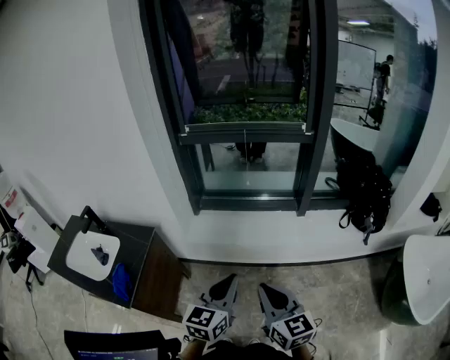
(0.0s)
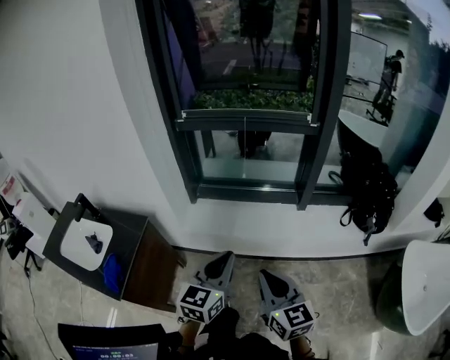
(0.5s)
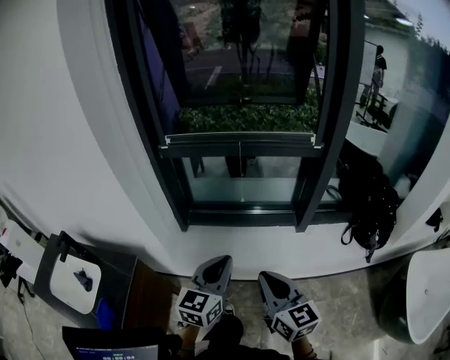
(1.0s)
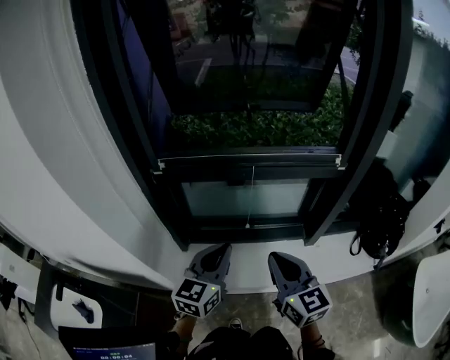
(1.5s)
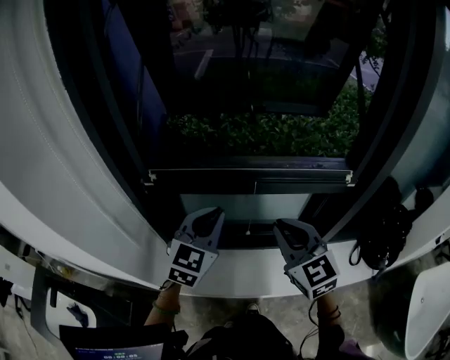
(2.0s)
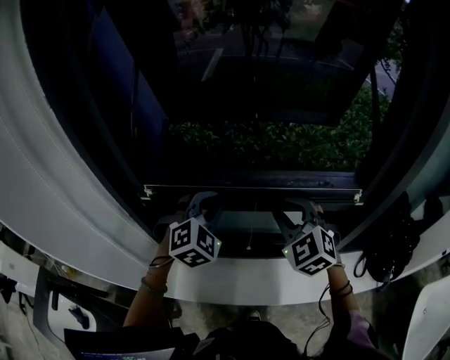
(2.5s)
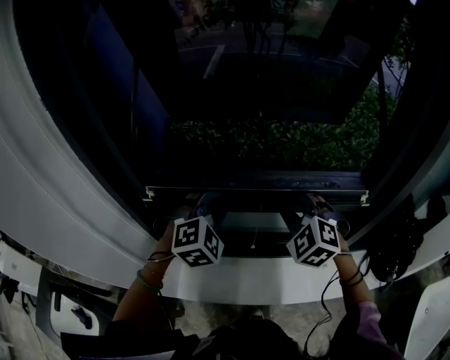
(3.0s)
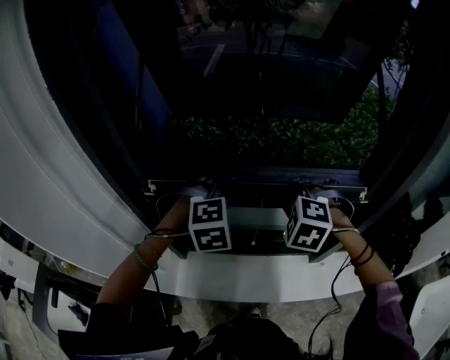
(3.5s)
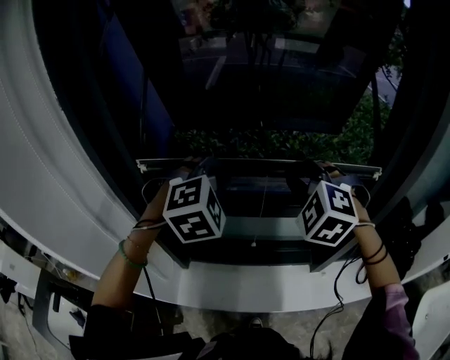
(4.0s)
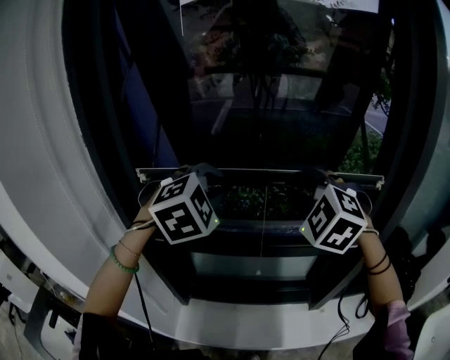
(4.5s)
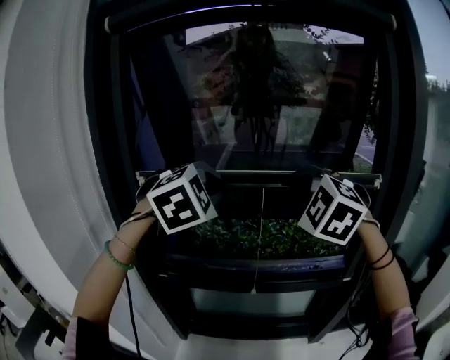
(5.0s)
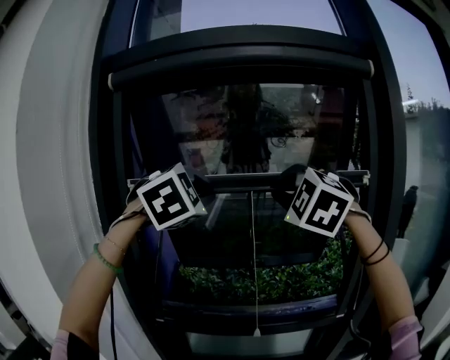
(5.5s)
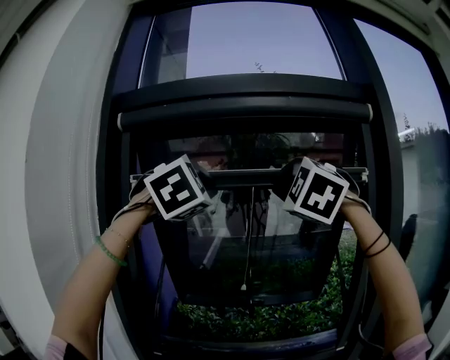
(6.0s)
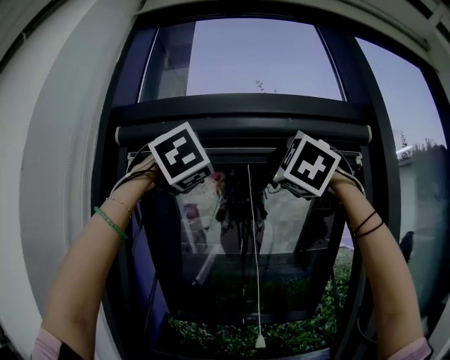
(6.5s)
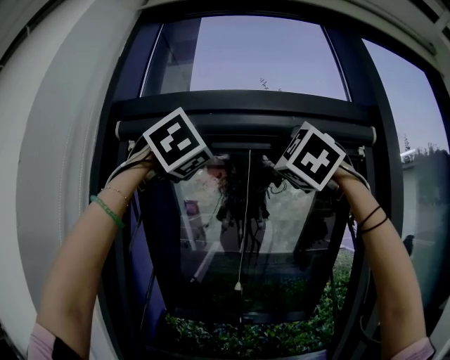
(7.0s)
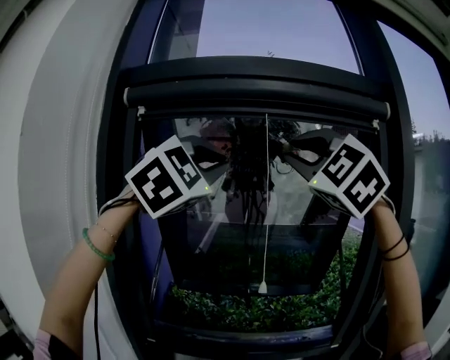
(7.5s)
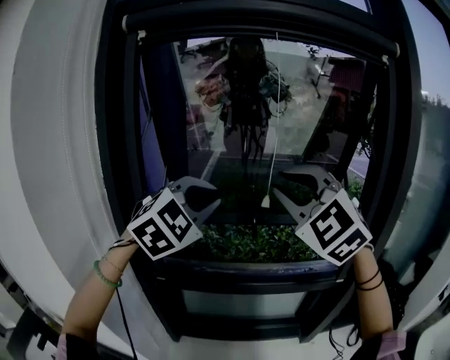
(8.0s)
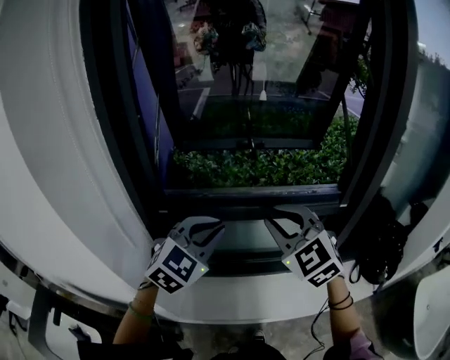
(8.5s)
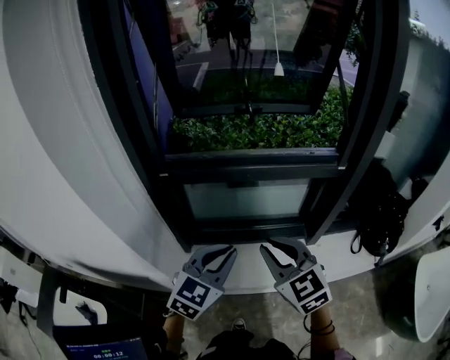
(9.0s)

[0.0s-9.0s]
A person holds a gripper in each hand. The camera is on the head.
0.0s to 2.0s: Both grippers are carried forward, approximately 60 cm. The left gripper swivels approximately 30 degrees, while the right gripper rotates roughly 30 degrees.
2.0s to 4.5s: The grippers both shift upward and forward by some 25 cm. The left gripper twists approximately 40 degrees clockwise, seen from behind, while the right gripper rotates around the line of its fingers by roughly 50 degrees, counterclockwise from behind.
4.5s to 7.0s: The grippers both shift upward by roughly 50 cm. The left gripper tips its fingers upward by about 30 degrees. The right gripper tips its fingers upward by approximately 30 degrees.
7.0s to 9.0s: Both grippers travel together downward and backward, about 80 cm. The right gripper twists about 50 degrees clockwise, seen from behind; the left gripper rotates around the line of its fingers by approximately 50 degrees, counterclockwise from behind.

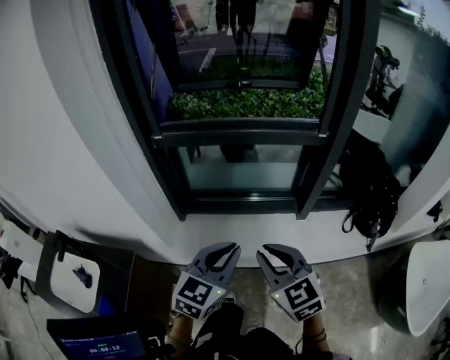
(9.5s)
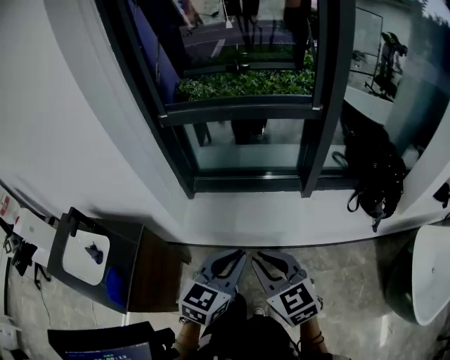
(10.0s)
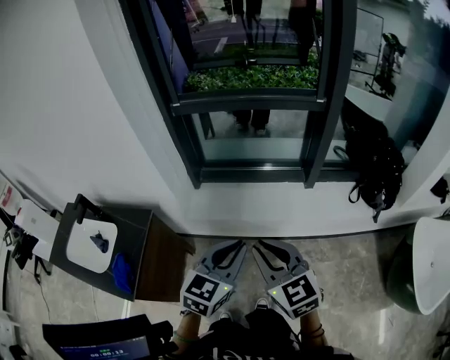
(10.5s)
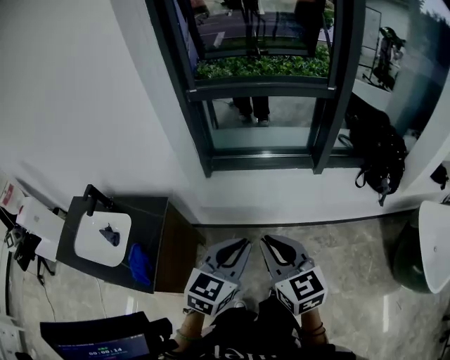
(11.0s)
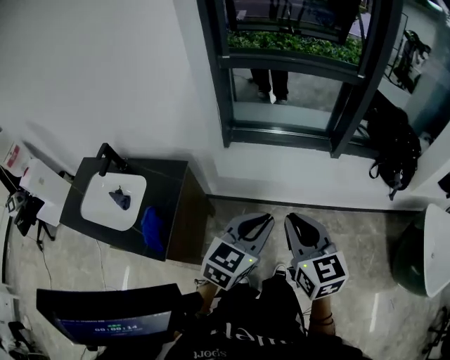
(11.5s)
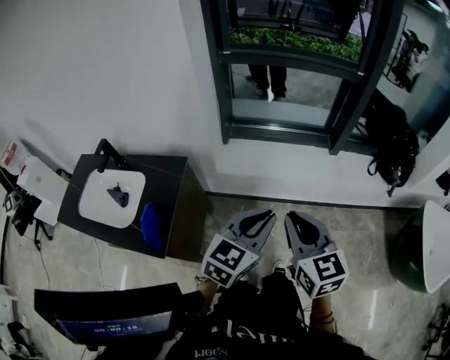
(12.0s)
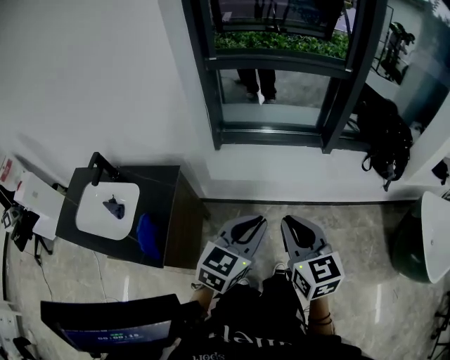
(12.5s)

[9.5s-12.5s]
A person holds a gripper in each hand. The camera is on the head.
9.5s to 11.0s: The left gripper shifts roughly 25 cm backward. Meanwhile the right gripper is displaced backward and to the left by about 25 cm.
11.0s to 12.5s: The left gripper moves roughly 5 cm.

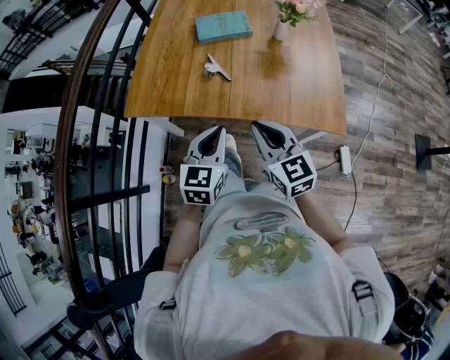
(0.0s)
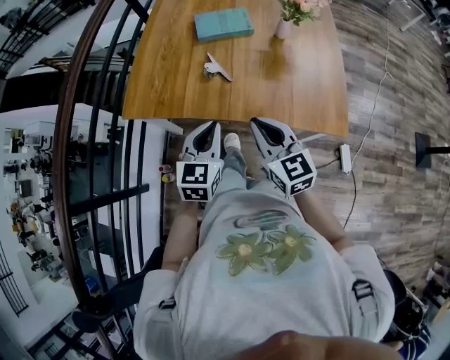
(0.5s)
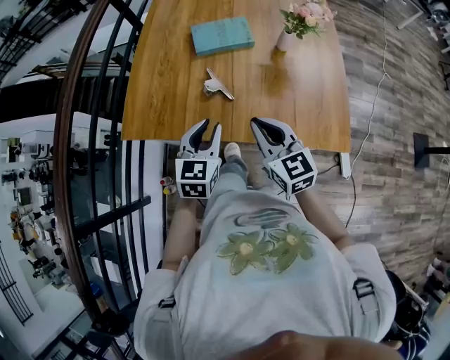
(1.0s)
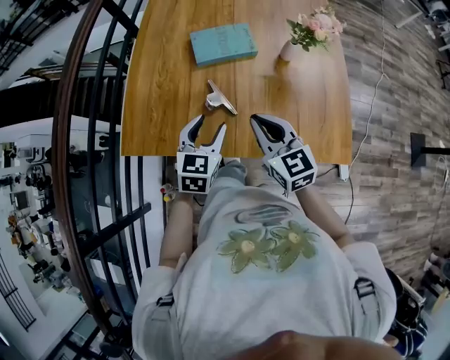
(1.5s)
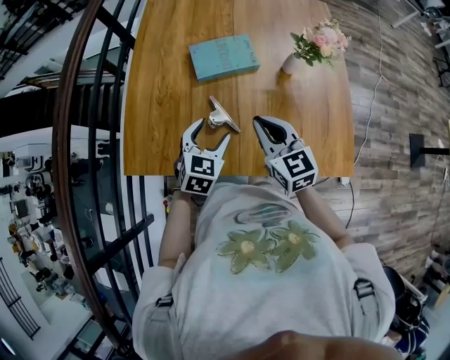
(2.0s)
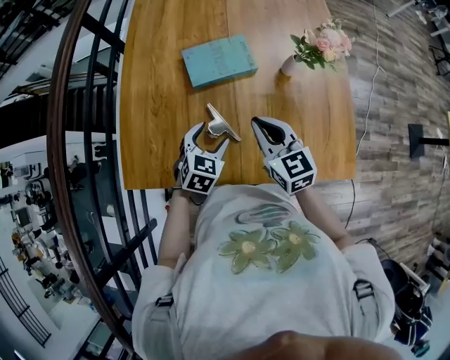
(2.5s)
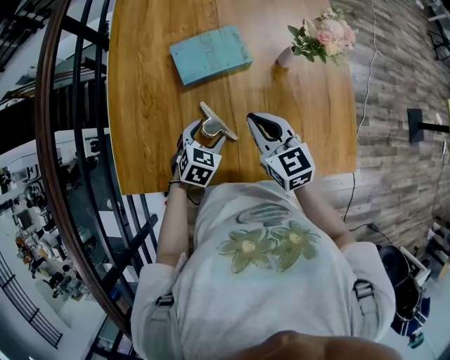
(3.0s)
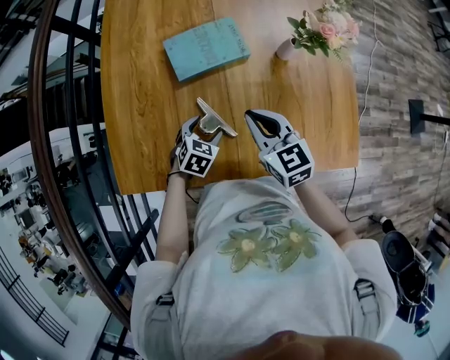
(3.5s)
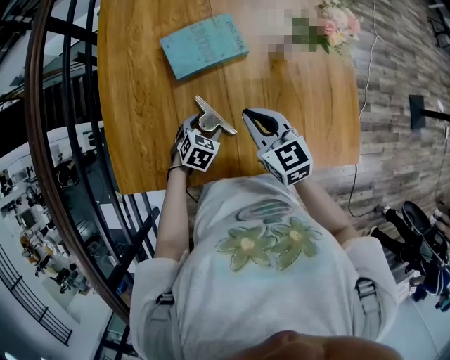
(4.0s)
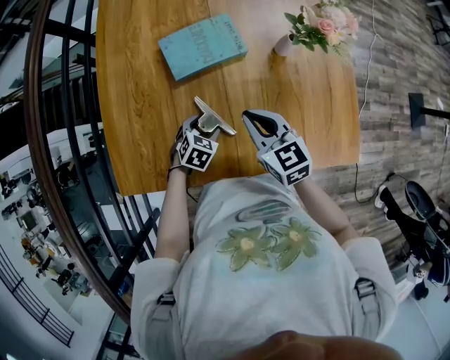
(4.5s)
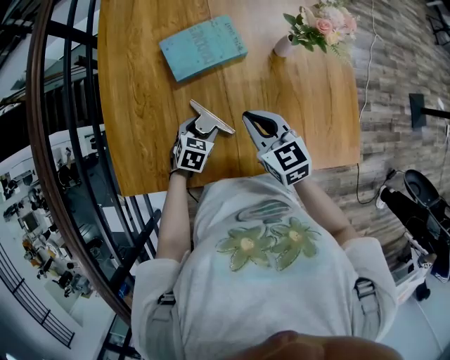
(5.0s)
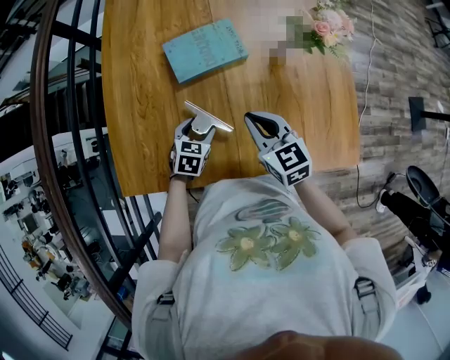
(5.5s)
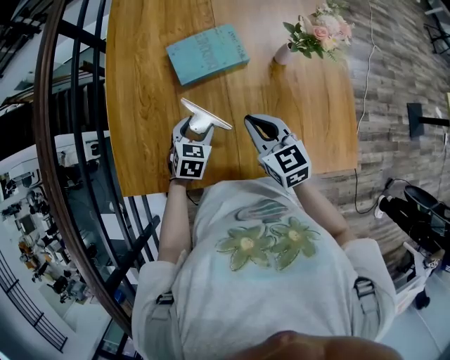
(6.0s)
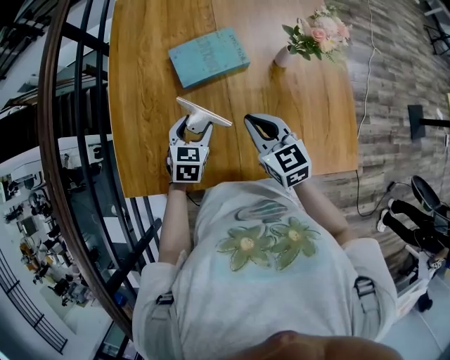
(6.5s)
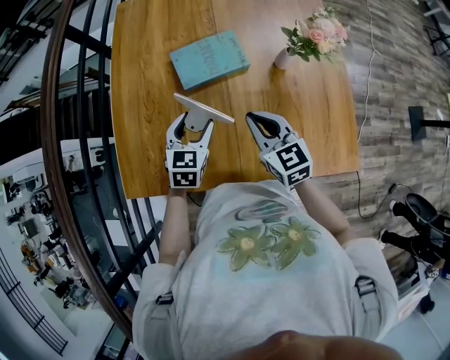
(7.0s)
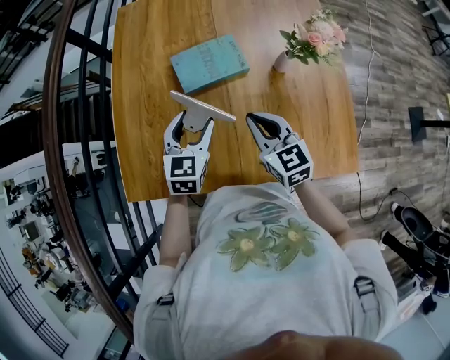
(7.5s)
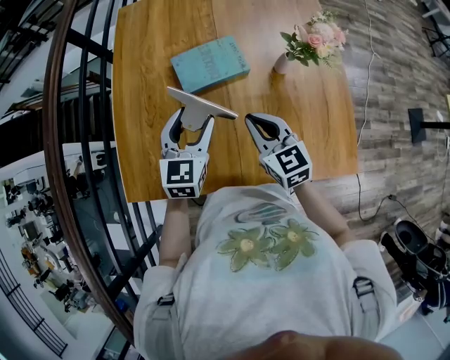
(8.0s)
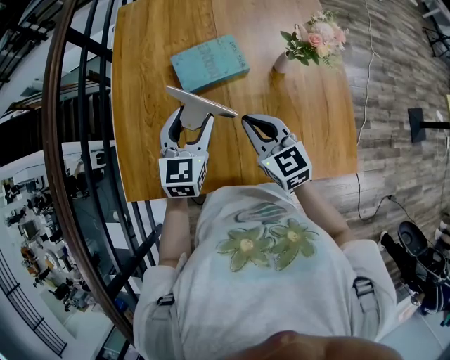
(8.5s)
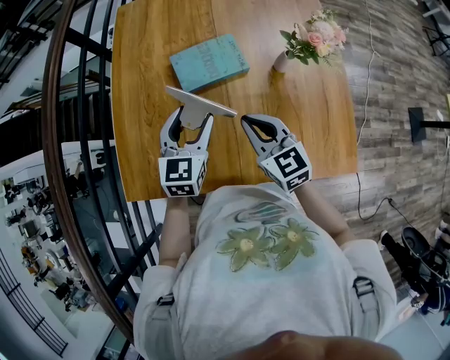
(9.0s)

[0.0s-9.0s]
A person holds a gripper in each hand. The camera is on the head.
0.0s to 2.0s: Both grippers move forward, roughly 25 cm. The left gripper swivels roughly 20 degrees, and opens its fingers.
2.0s to 4.5s: The left gripper is displaced downward by roughly 20 cm, and rotates some 30 degrees. Meanwhile the right gripper moves downward, approximately 5 cm.
4.5s to 7.0s: The left gripper is displaced upward by roughly 15 cm, and rotates approximately 30 degrees.
7.0s to 9.0s: The left gripper goes approximately 10 cm upward.

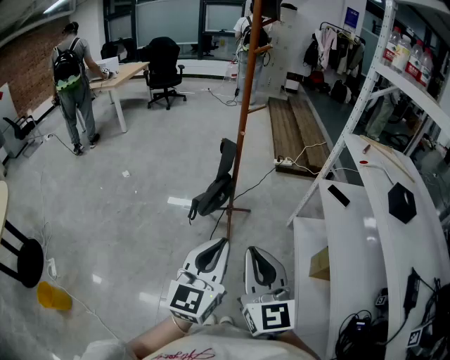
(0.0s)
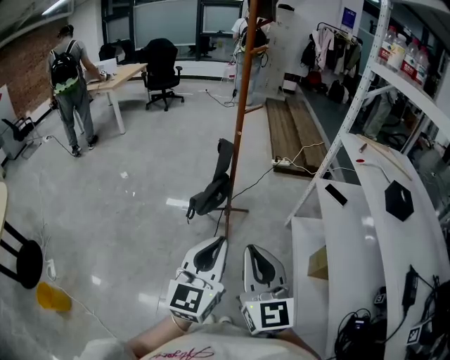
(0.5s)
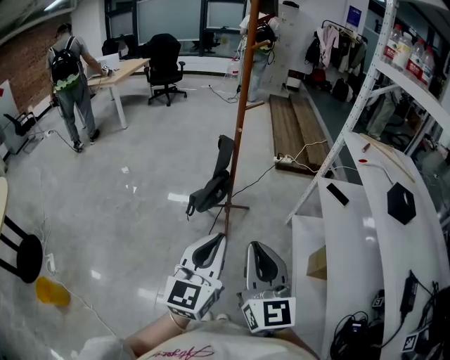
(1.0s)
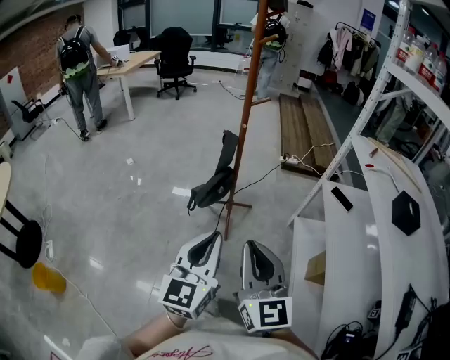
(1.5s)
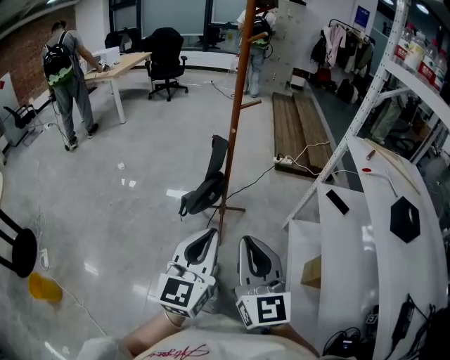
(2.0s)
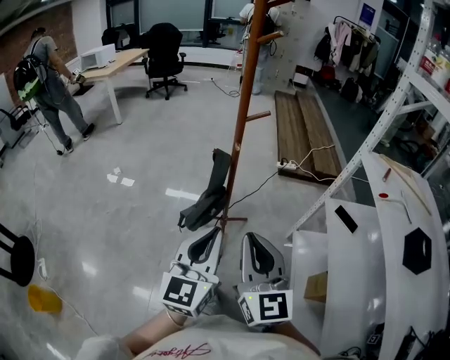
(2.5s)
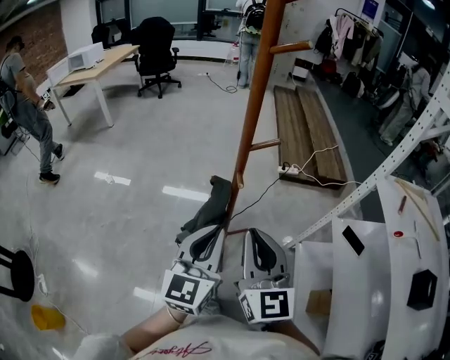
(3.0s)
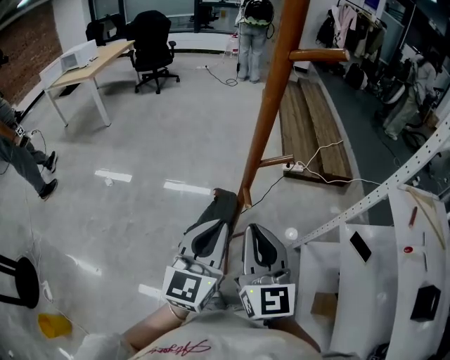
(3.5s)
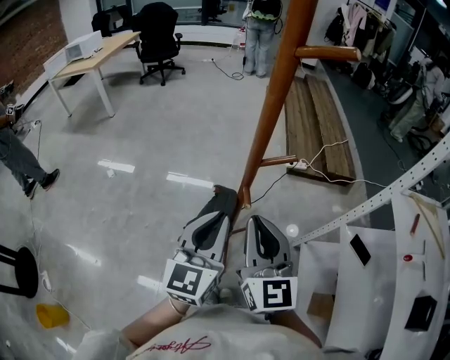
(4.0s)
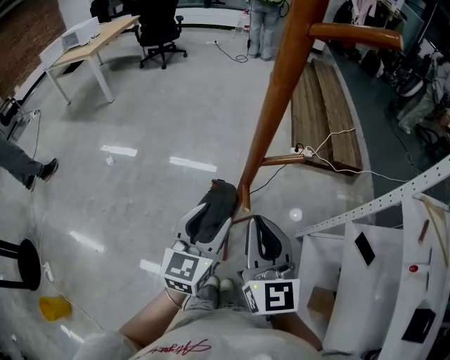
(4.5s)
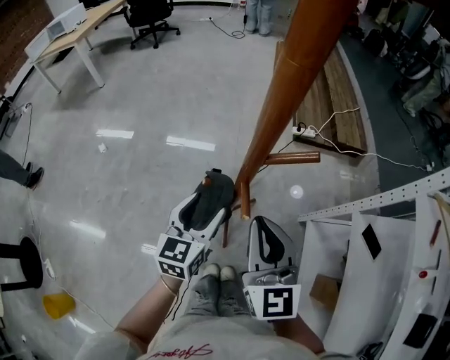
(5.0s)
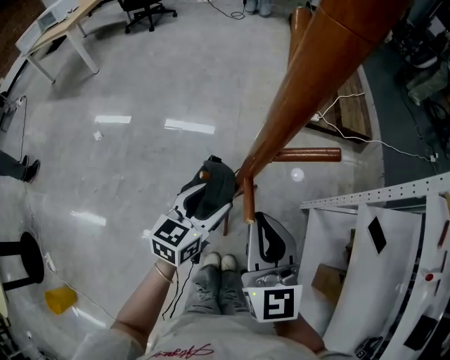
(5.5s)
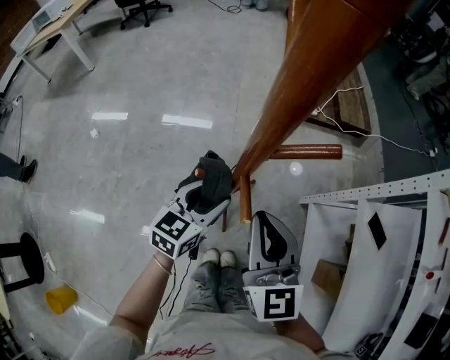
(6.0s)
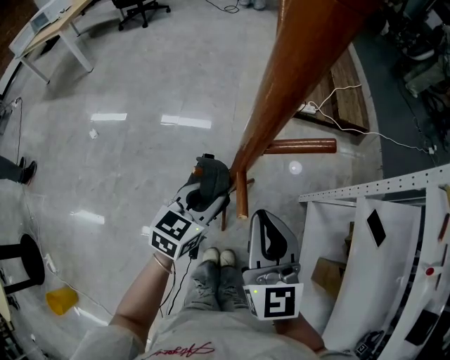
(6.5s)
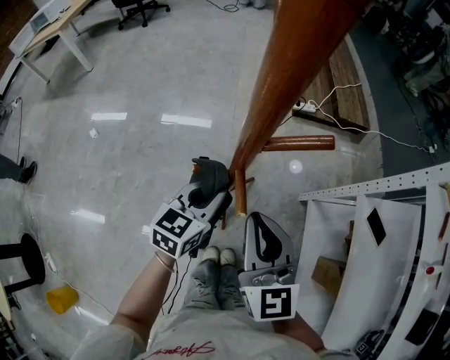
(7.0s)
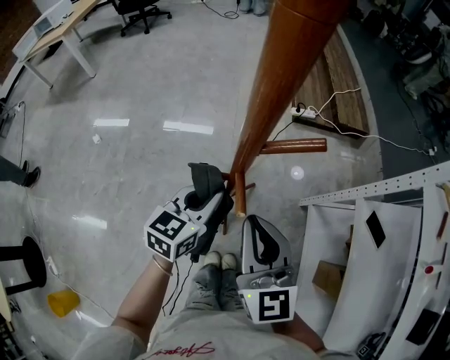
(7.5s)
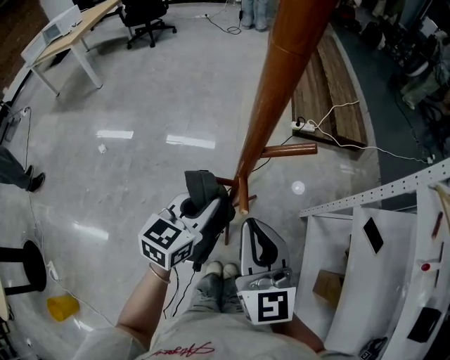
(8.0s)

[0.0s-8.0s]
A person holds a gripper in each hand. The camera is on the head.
0.0s to 2.0s: The two grippers go some 5 cm forward.
2.0s to 4.0s: The two grippers go roughly 35 cm forward.
4.0s to 6.0s: The left gripper goes approximately 25 cm downward and forward, changes its angle by approximately 30 degrees, and opens, while the right gripper travels downward and forward by approximately 10 cm.
6.0s to 8.0s: The left gripper heads upward, covering roughly 10 cm, and closes its fingers.
